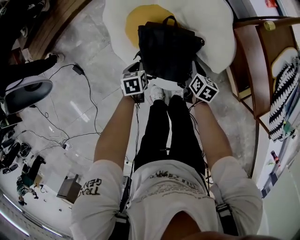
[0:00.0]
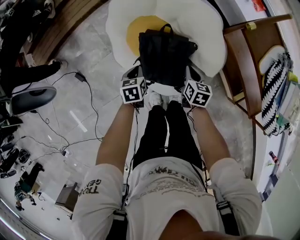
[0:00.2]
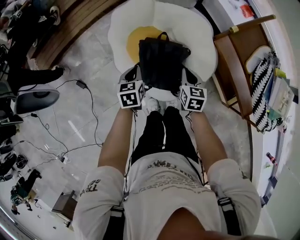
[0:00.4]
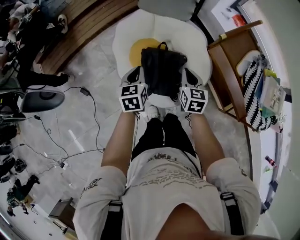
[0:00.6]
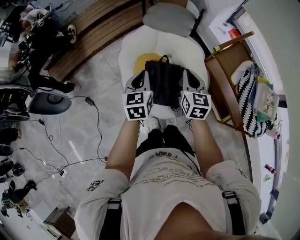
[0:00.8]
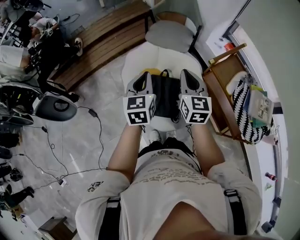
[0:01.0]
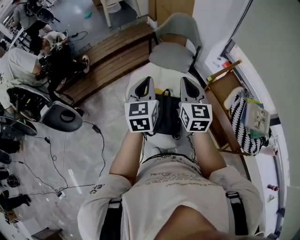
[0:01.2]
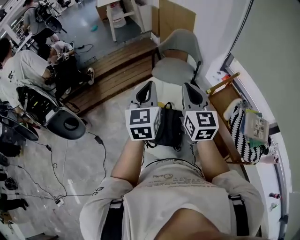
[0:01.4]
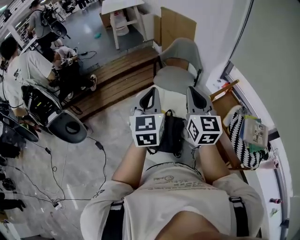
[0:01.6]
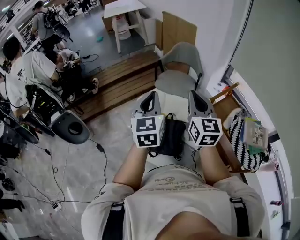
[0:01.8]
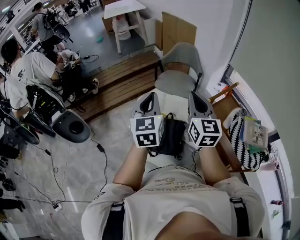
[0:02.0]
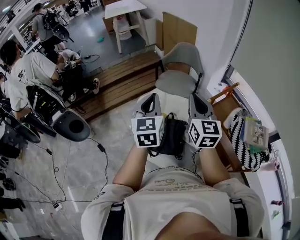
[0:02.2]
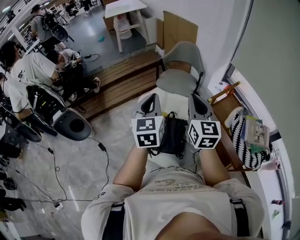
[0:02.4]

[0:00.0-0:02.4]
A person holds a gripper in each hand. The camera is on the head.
0:00.0 to 0:01.2: Both grippers travel together upward, approximately 60 cm. The left gripper points its fingers roughly 50 degrees further upward. Meanwhile the right gripper tips its fingers upward by about 40 degrees.
0:01.2 to 0:02.4: Both grippers travel together upward, about 5 cm.

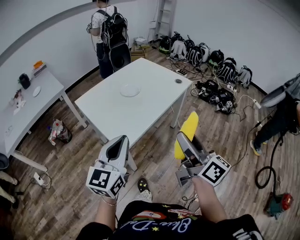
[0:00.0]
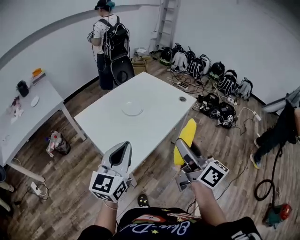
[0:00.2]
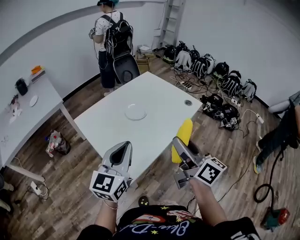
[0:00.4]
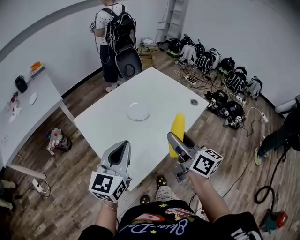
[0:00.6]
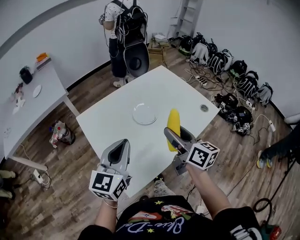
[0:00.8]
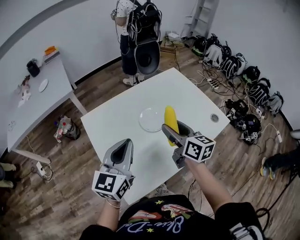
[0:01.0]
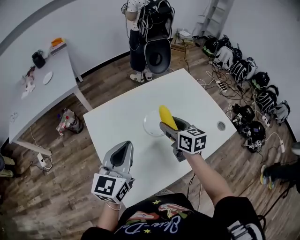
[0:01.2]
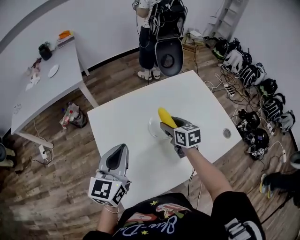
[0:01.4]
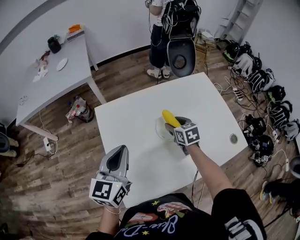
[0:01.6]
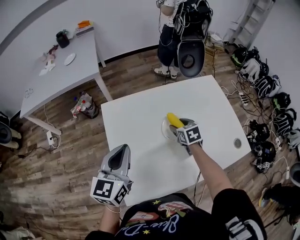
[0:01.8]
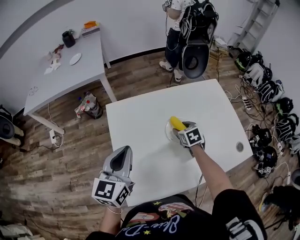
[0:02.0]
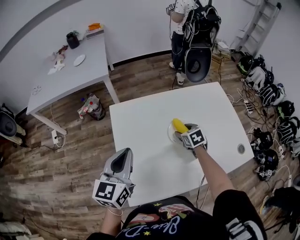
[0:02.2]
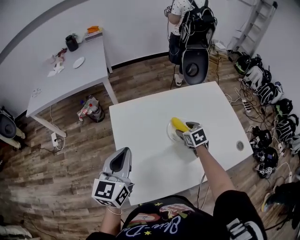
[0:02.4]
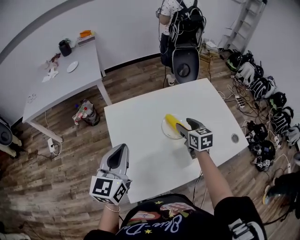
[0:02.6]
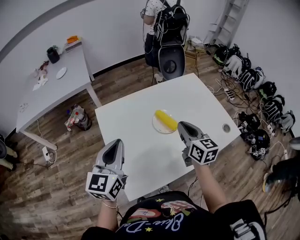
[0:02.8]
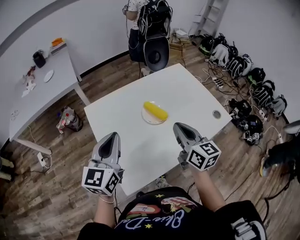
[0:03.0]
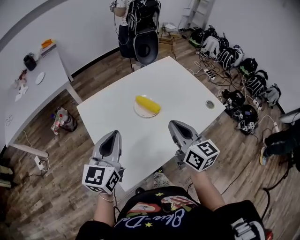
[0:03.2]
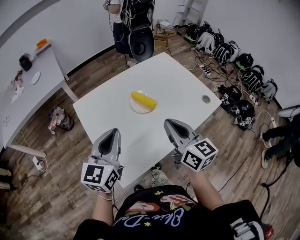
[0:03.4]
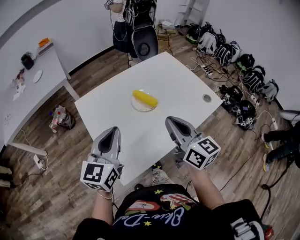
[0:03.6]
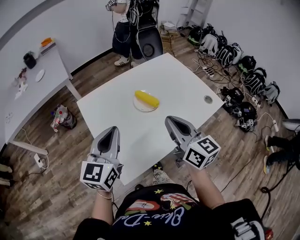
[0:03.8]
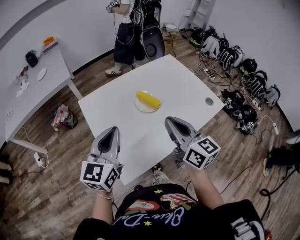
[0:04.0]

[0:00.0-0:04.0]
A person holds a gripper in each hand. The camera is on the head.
0:00.0 to 0:01.4: The right gripper shifts by approximately 60 cm, and tips its fingers downward by some 40 degrees. Meanwhile the left gripper moves roughly 35 cm, and changes its angle by some 30 degrees.
0:01.4 to 0:02.6: The left gripper travels to the left by some 10 cm, while the right gripper moves roughly 10 cm downward and comes back.
0:02.6 to 0:04.0: The left gripper travels to the right by some 5 cm. Meanwhile the right gripper goes approximately 25 cm backward and upward, turns by roughly 30 degrees, and closes up.

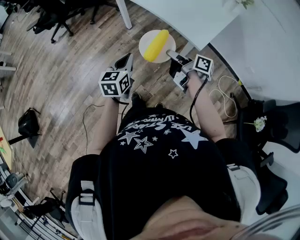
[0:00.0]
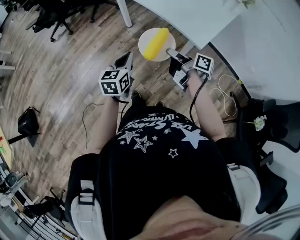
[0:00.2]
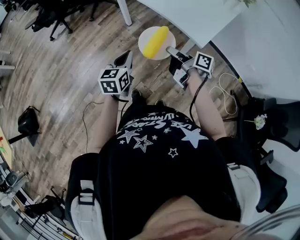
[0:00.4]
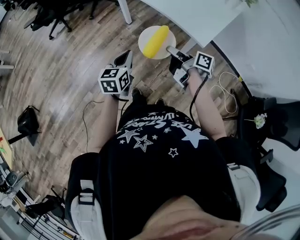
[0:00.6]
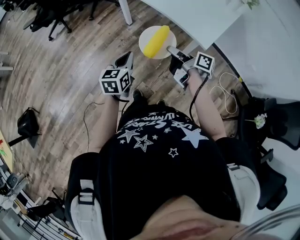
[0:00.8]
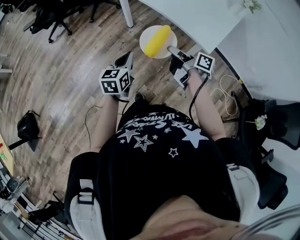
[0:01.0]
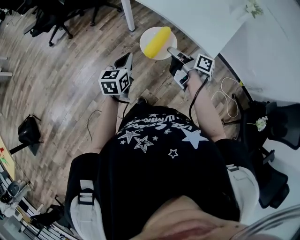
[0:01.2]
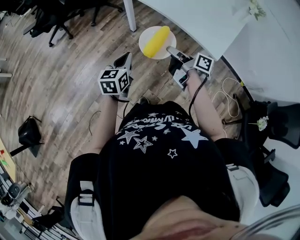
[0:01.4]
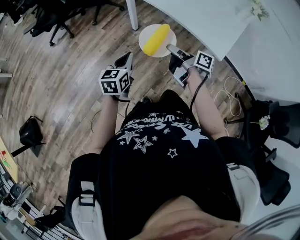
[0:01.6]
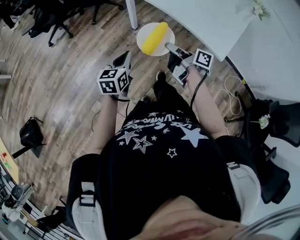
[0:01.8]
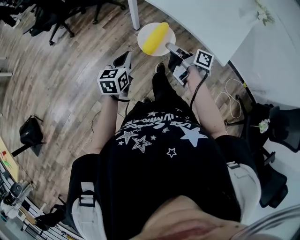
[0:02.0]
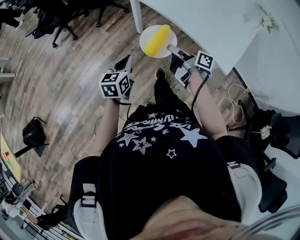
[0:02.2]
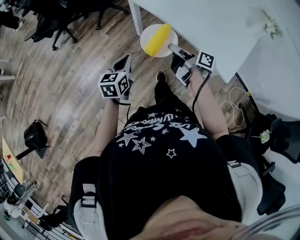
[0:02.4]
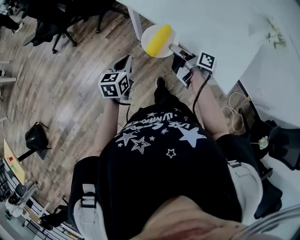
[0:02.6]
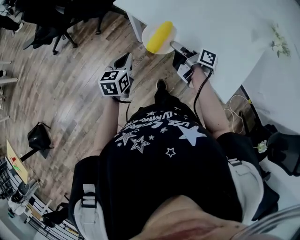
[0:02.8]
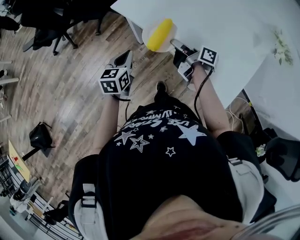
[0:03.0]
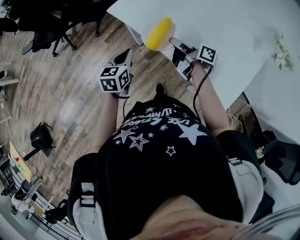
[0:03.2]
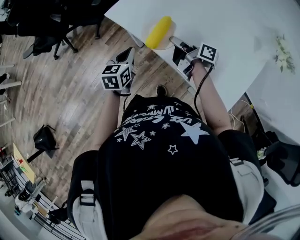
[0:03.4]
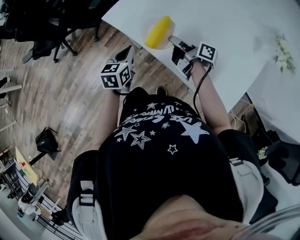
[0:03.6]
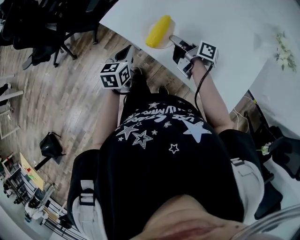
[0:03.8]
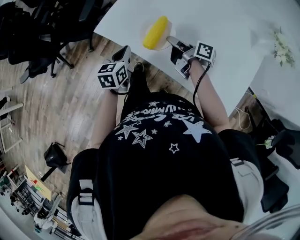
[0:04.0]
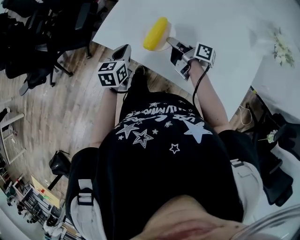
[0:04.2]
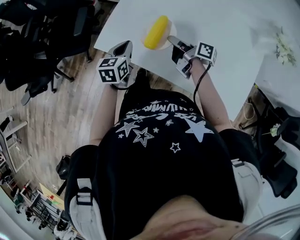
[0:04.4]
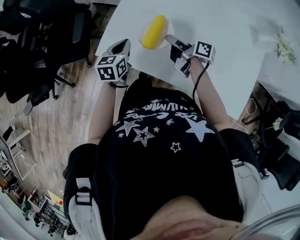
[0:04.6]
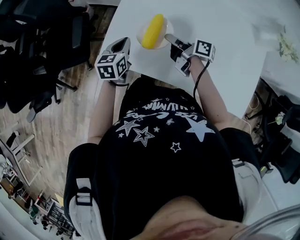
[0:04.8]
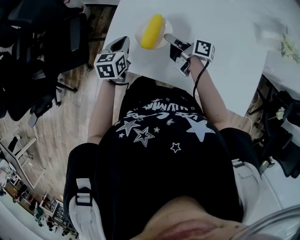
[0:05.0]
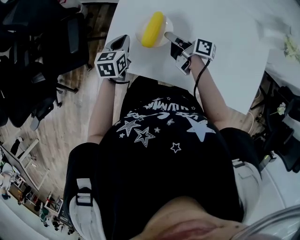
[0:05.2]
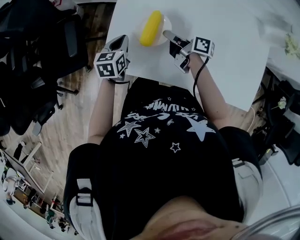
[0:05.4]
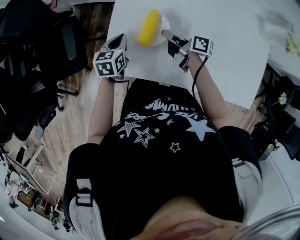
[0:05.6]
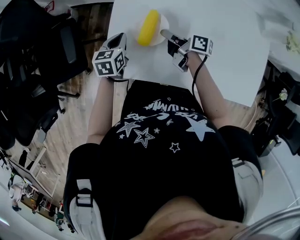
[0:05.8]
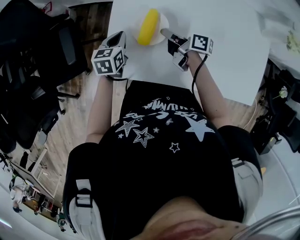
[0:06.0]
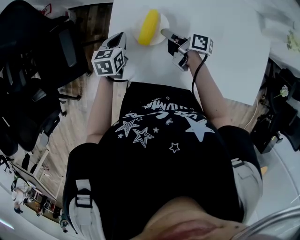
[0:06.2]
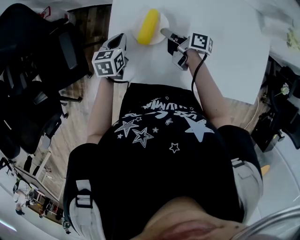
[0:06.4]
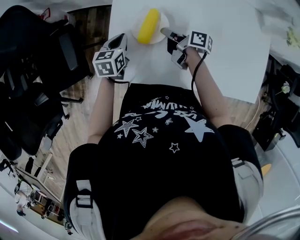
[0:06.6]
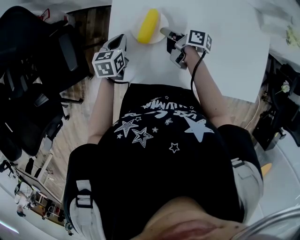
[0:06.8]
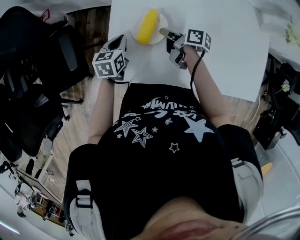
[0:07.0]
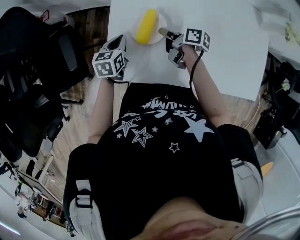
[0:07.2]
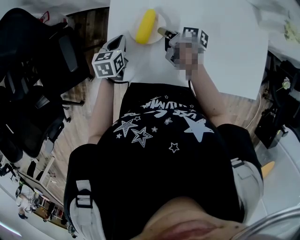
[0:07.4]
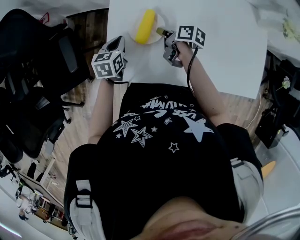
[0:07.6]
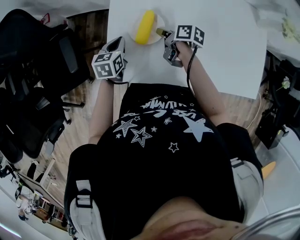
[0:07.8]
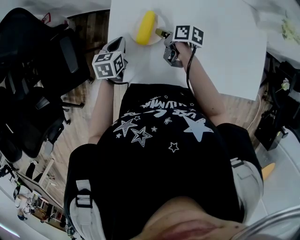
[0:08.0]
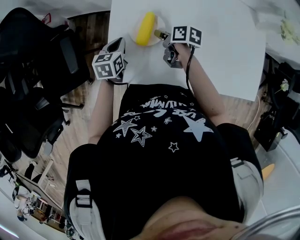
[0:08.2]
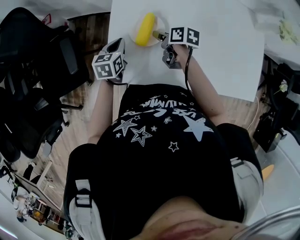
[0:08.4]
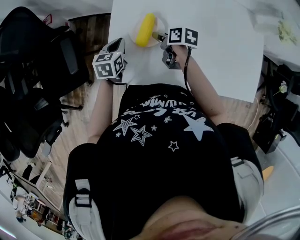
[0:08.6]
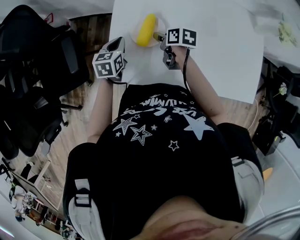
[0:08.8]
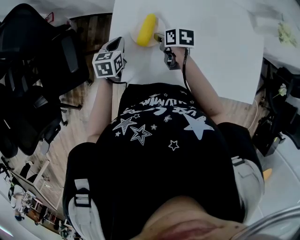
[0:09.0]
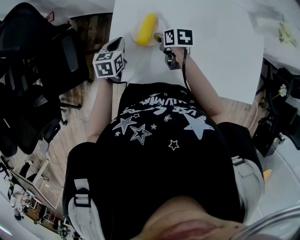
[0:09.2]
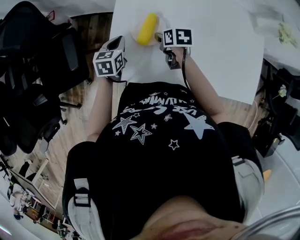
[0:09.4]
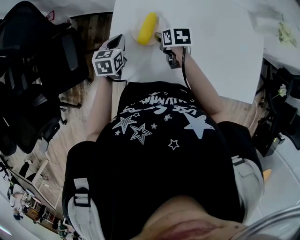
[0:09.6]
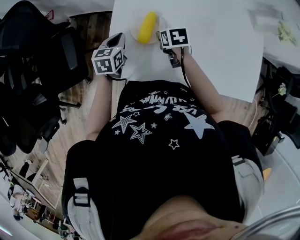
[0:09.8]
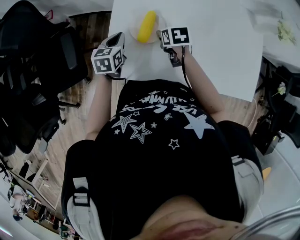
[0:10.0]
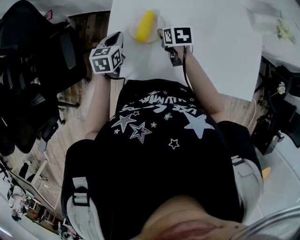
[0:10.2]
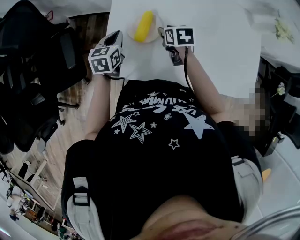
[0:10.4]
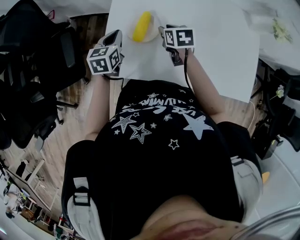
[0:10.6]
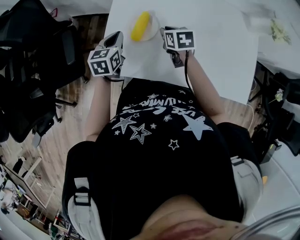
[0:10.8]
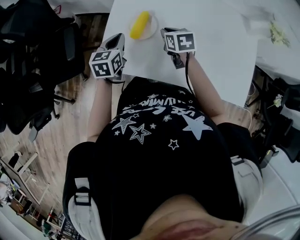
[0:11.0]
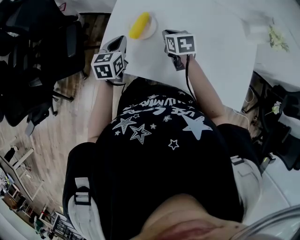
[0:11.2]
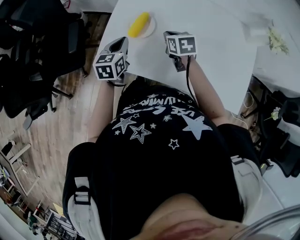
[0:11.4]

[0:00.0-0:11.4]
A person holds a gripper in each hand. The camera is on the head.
0:00.0 to 0:01.4: Both grippers travel together to the left and forward, about 15 cm.
0:01.4 to 0:02.8: The two grippers go roughly 30 cm forward.
0:02.8 to 0:04.2: Both grippers move forward and to the right, about 25 cm.
0:04.2 to 0:05.6: The left gripper travels forward by some 25 cm, and turns by approximately 20 degrees. Meanwhile the right gripper moves forward and to the left, some 20 cm.
0:05.6 to 0:07.2: The grippers stay close to where they were, moving slightly.
0:07.2 to 0:08.6: The right gripper swivels roughly 20 degrees, and opens.
0:08.6 to 0:10.0: The right gripper turns by about 30 degrees.
0:10.0 to 0:11.4: The left gripper moves backward, upward and to the right, roughly 15 cm. Meanwhile the right gripper shifts some 10 cm upward, to the right and backward, and closes.

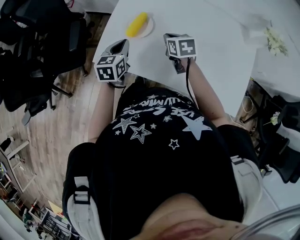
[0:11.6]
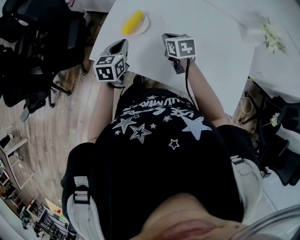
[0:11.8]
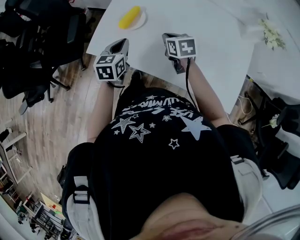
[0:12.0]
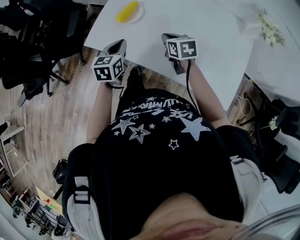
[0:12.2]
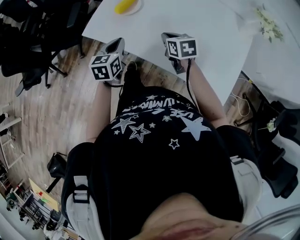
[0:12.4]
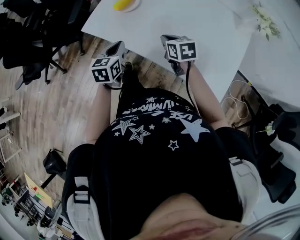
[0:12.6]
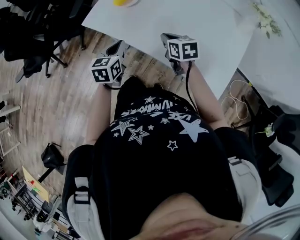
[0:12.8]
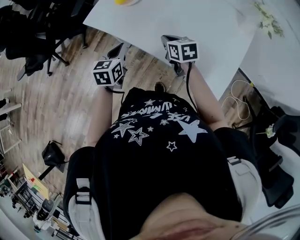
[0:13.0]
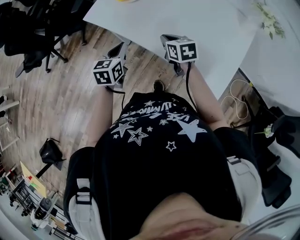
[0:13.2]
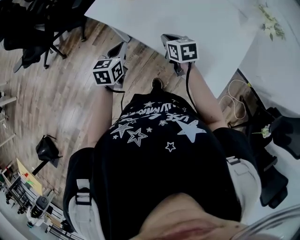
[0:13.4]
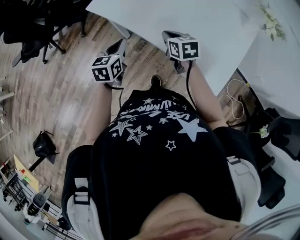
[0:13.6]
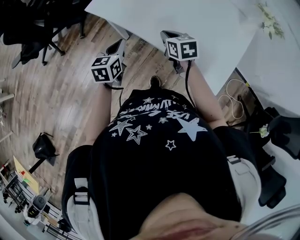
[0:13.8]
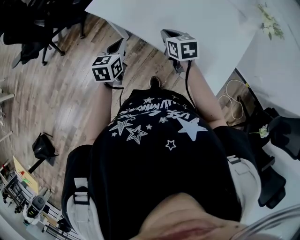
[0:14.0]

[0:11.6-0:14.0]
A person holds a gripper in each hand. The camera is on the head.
0:11.6 to 0:12.8: The two grippers go roughly 20 cm backward.
0:12.8 to 0:14.0: The right gripper shifts by approximately 5 cm. Meanwhile the left gripper travels backward by approximately 5 cm.

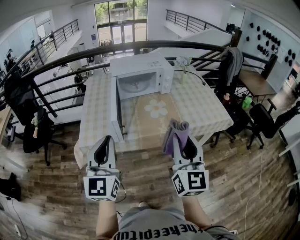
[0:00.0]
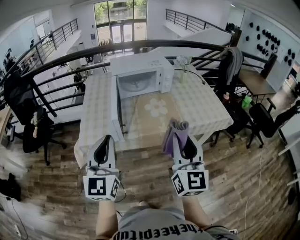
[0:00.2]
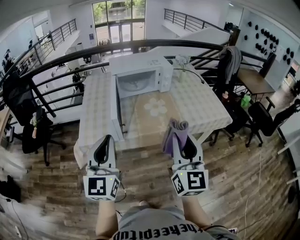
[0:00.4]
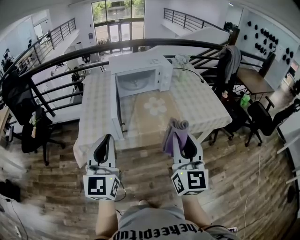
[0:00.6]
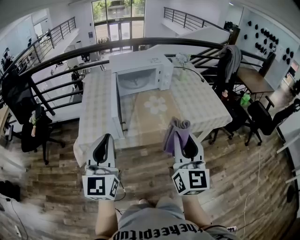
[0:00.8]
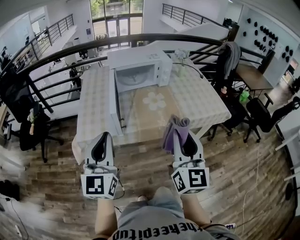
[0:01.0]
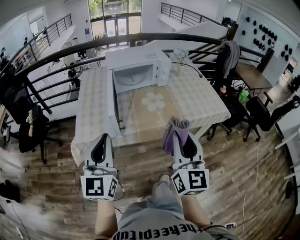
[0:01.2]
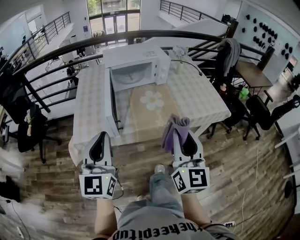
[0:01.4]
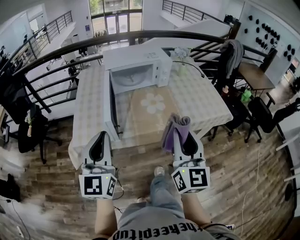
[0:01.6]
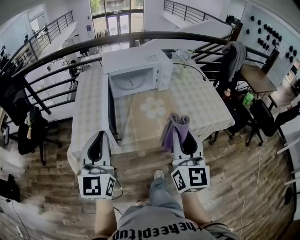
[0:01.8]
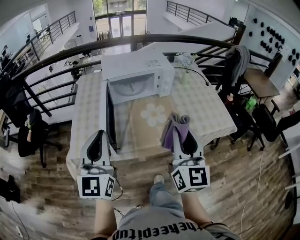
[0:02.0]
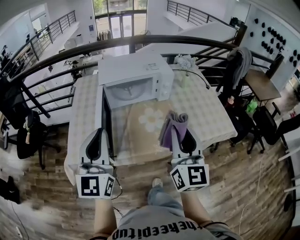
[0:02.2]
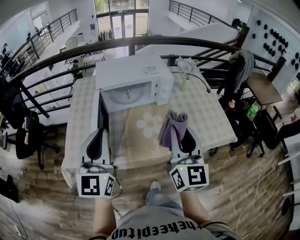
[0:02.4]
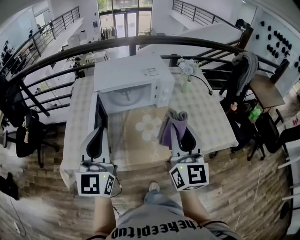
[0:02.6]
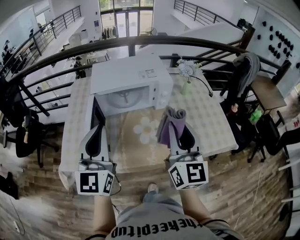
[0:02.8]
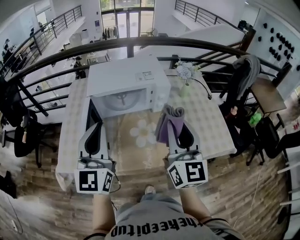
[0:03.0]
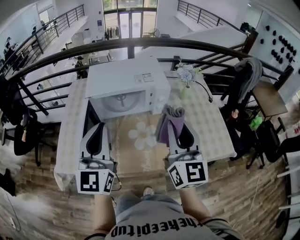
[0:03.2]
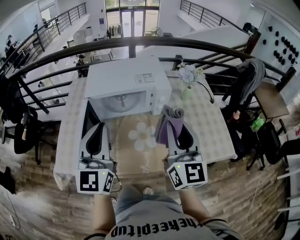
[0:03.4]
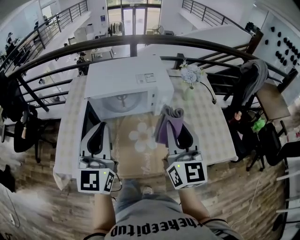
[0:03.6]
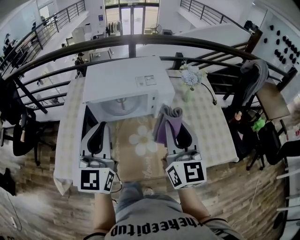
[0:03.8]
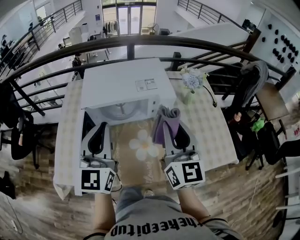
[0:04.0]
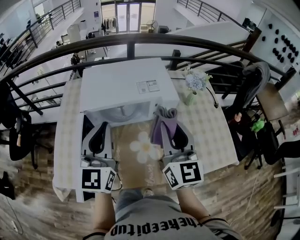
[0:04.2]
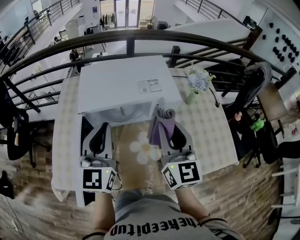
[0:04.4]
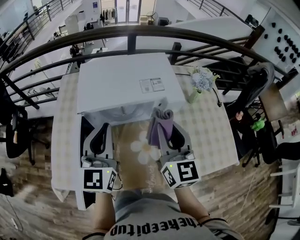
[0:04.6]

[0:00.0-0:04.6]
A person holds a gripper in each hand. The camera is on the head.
0:00.0 to 0:01.6: The right gripper changes place by roughly 5 cm. The left gripper is displaced forward by approximately 5 cm.
0:01.6 to 0:03.0: The left gripper travels forward and to the right by approximately 25 cm, while the right gripper heads forward, covering approximately 25 cm.
0:03.0 to 0:04.6: Both grippers move forward and downward, roughly 20 cm.
